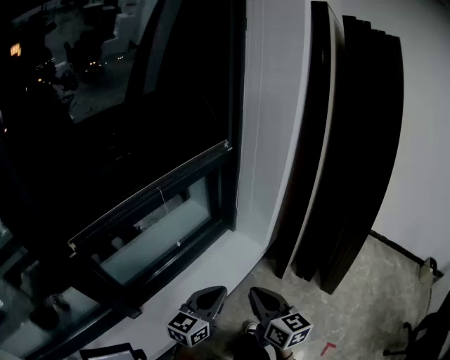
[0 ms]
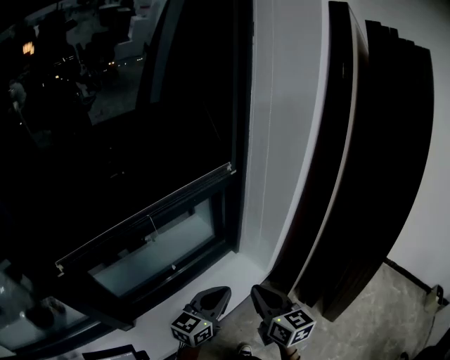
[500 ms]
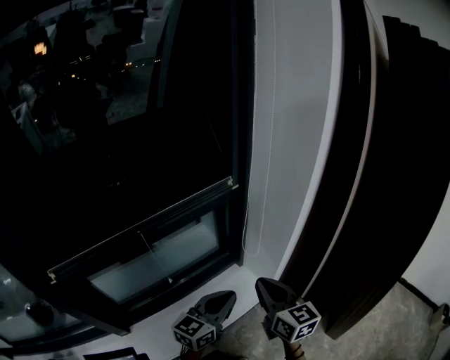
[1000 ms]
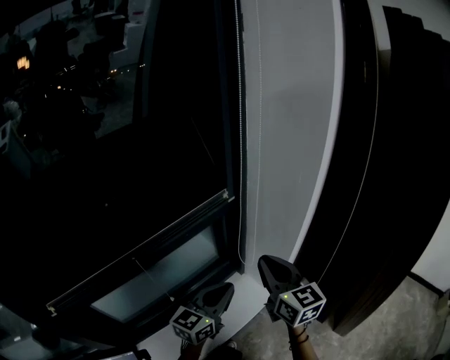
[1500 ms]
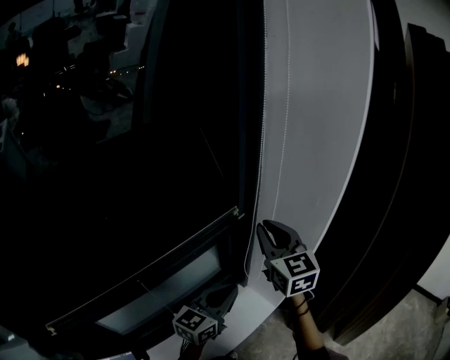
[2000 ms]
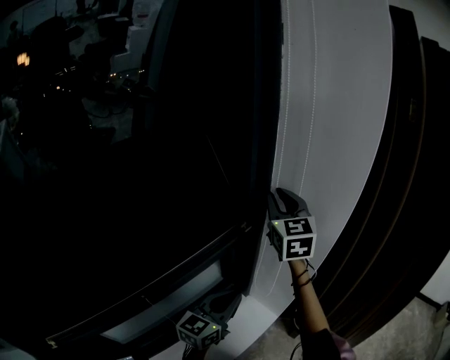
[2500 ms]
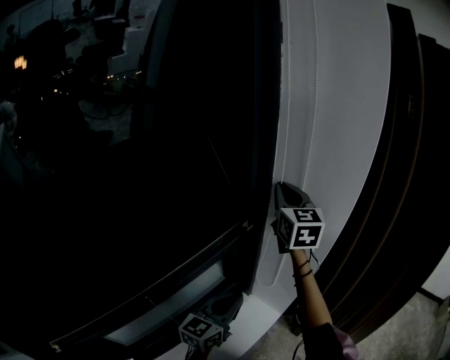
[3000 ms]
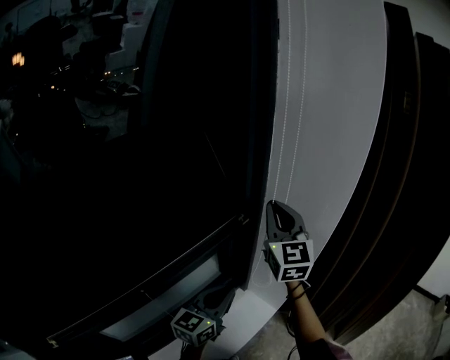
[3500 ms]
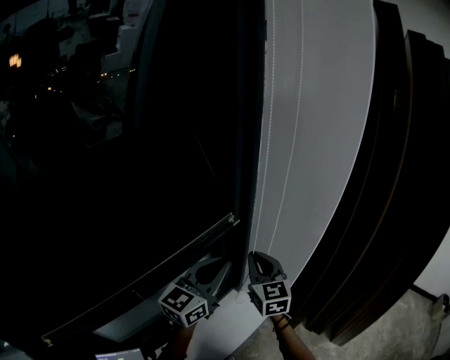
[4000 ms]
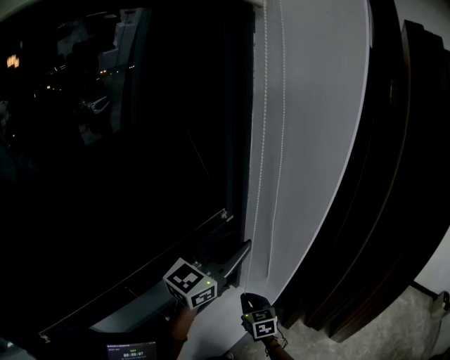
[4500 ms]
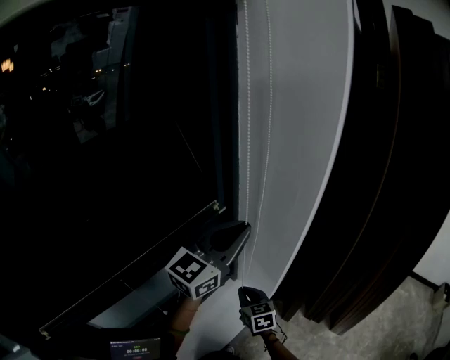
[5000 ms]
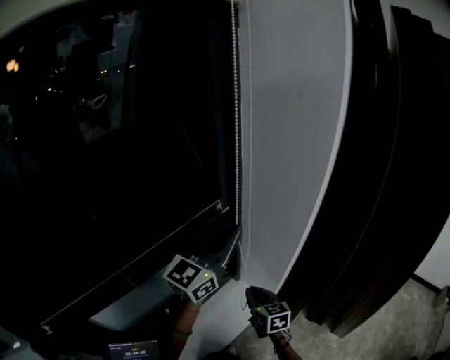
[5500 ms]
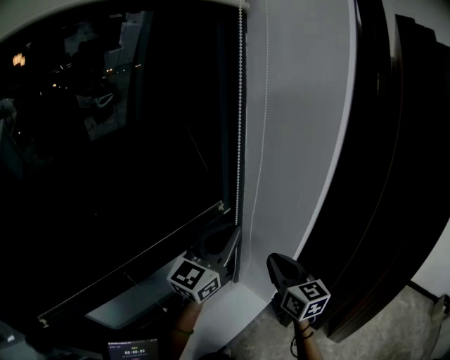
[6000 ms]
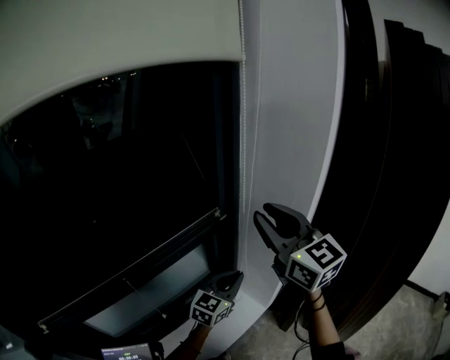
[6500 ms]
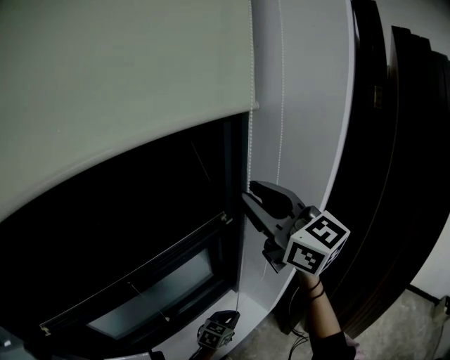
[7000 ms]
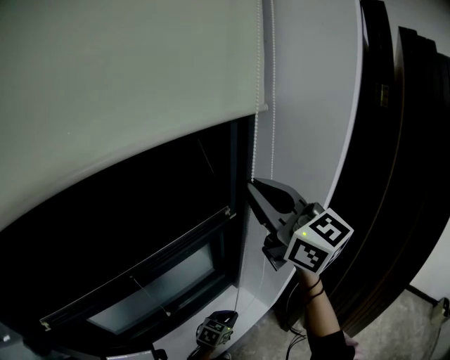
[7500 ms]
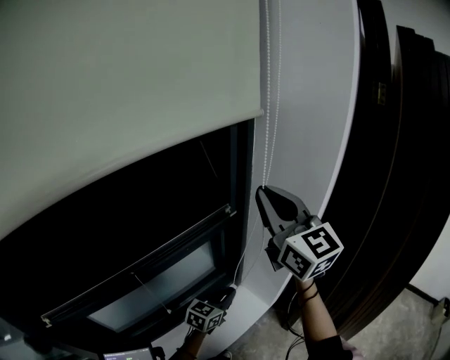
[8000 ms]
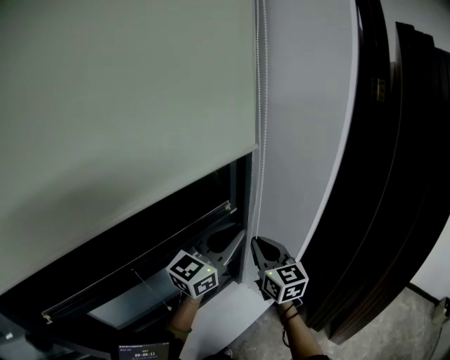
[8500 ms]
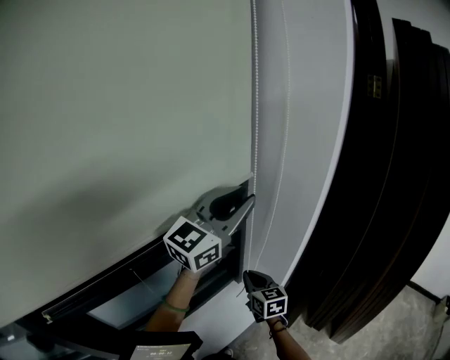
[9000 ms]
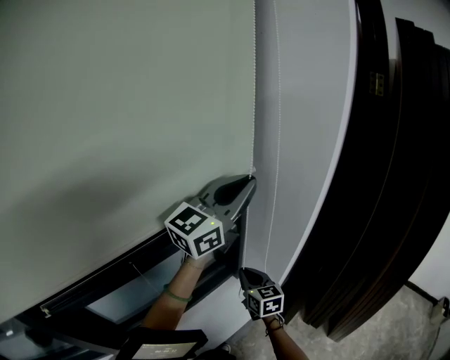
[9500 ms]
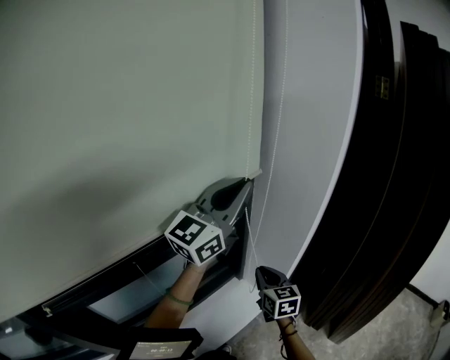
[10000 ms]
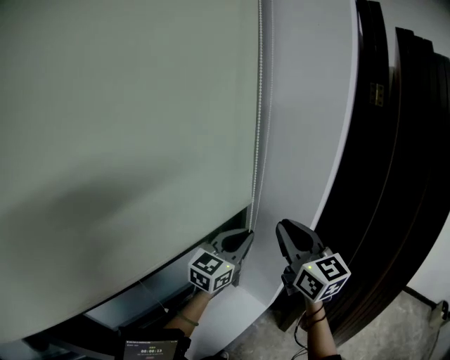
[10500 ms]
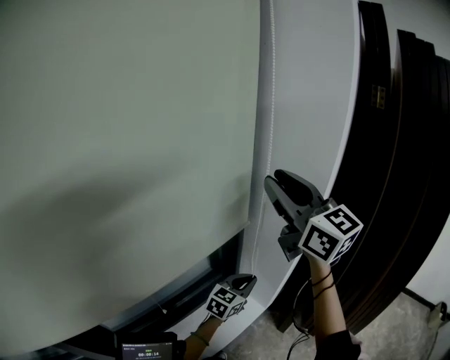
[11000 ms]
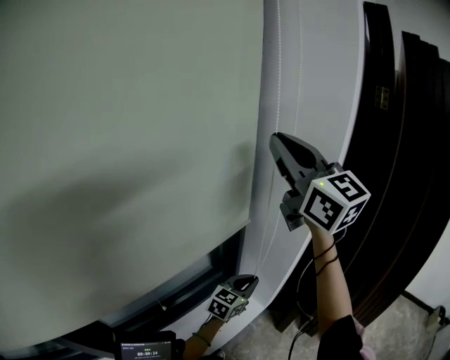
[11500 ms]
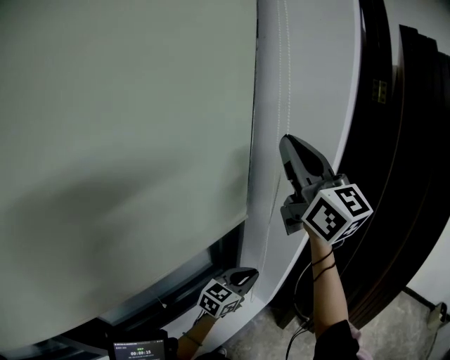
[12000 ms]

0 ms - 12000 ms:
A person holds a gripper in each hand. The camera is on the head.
0 ms - 2000 ms: Both grippers travel together forward, approximately 40 cm. The right gripper turns by about 30 degrees.
2000 ms - 4000 ms: The left gripper travels upward and forward by roughly 10 cm, while the right gripper moves downward, roughly 10 cm.
4000 ms - 6000 ms: The right gripper heads to the right and backward, covering roughly 10 cm, and goes downward and returns, some 20 cm each way, while the left gripper moves upward and to the right, roughly 10 cm, and opens, then closes again.
6000 ms - 8000 ms: The left gripper shifts about 30 cm downward, and angles its fingers downward, by roughly 30 degrees; the right gripper shifts approximately 20 cm upward, rotates roughly 30 degrees, and opens and closes again.
8000 ms - 10000 ms: The right gripper travels downward by approximately 35 cm, and points its fingers about 30 degrees further downward. Meanwhile the left gripper travels upward by approximately 40 cm, and tips its fingers upward by approximately 40 degrees.
10000 ms - 12000 ms: The right gripper goes roughly 40 cm upward, points its fingers about 40 degrees further upward, and opens, then closes again. The left gripper heads downward, covering approximately 30 cm, and angles its fingers downward, by roughly 30 degrees.

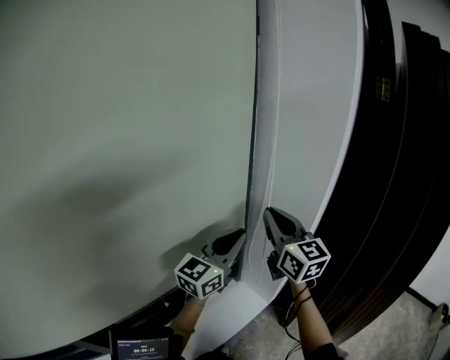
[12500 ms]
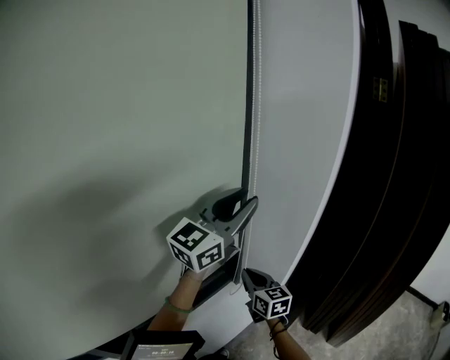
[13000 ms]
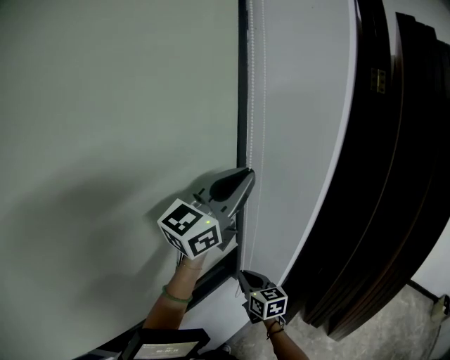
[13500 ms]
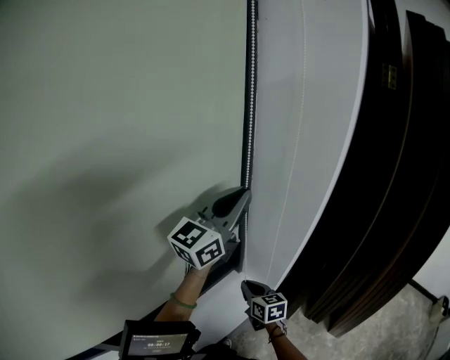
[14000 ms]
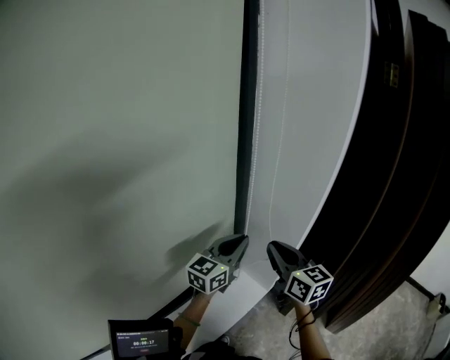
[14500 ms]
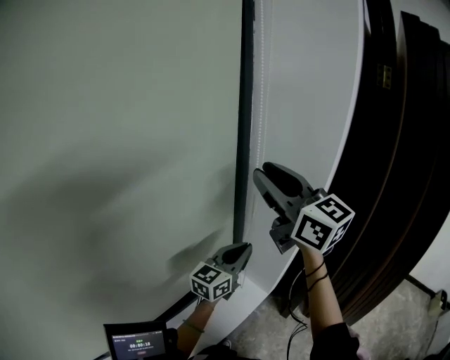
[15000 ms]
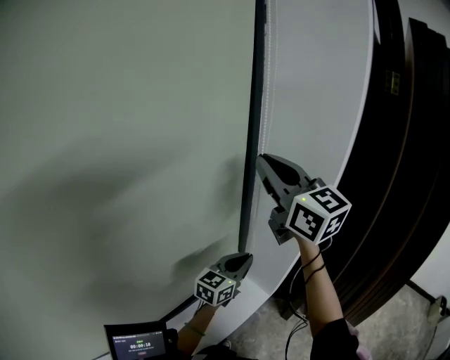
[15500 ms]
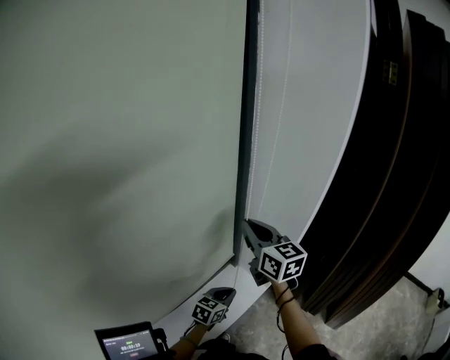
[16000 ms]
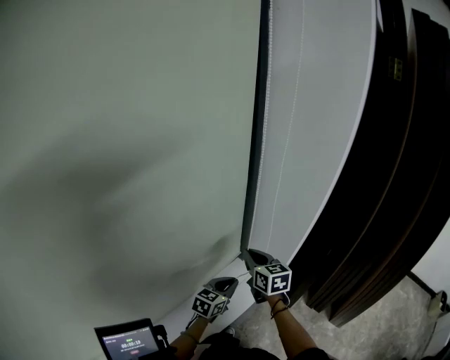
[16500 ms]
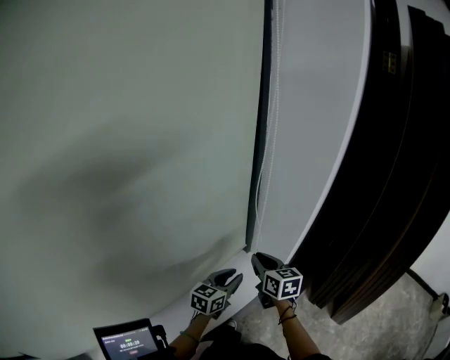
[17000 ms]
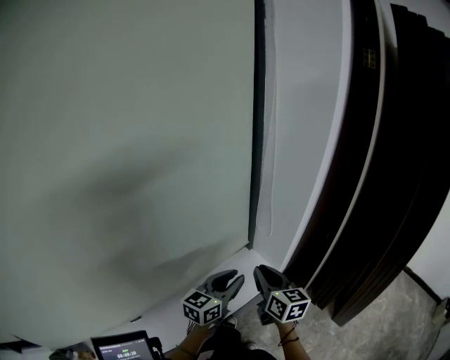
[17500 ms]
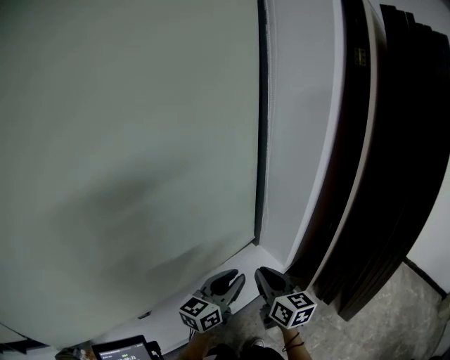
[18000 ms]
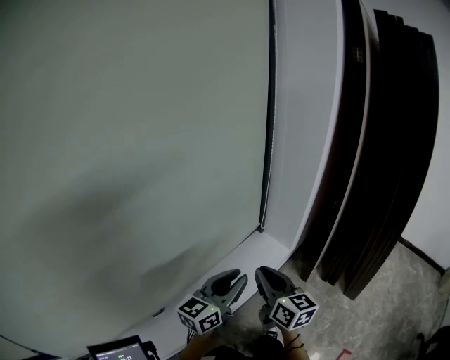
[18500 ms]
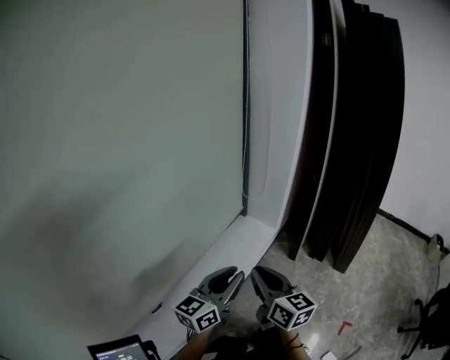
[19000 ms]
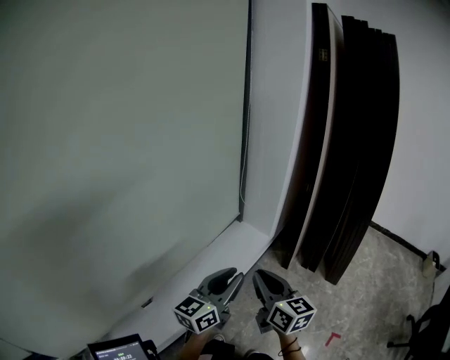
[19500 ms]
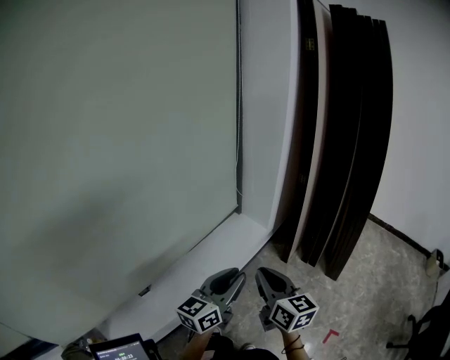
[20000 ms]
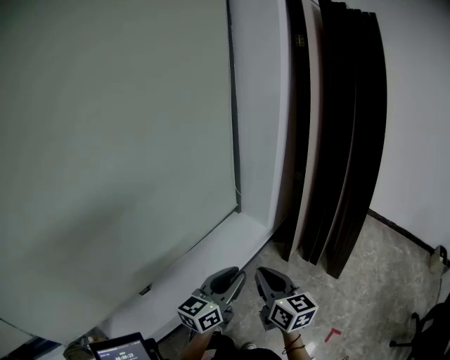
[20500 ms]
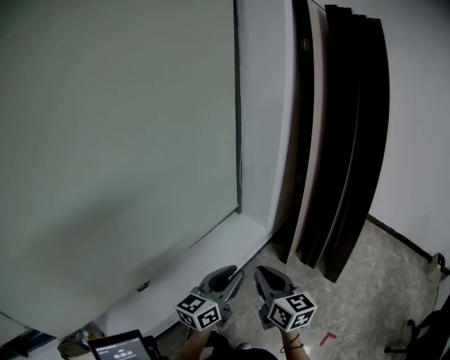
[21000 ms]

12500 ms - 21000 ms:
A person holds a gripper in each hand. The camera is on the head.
12500 ms - 14500 ms: The two grippers go approximately 10 cm downward. The left gripper opens and closes again.
14500 ms - 16500 ms: The right gripper goes about 15 cm downward and to the left, and opens and closes again. Meanwhile the left gripper heads downward and backward, covering approximately 25 cm, and changes its angle by some 30 degrees.
16500 ms - 19000 ms: The left gripper goes some 40 cm backward and upward, changes its angle by approximately 30 degrees, and opens its fingers, while the right gripper travels backward by some 40 cm.
19000 ms - 21000 ms: The grippers both shift to the right and backward by about 15 cm.

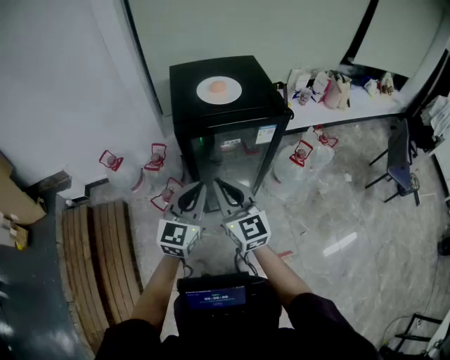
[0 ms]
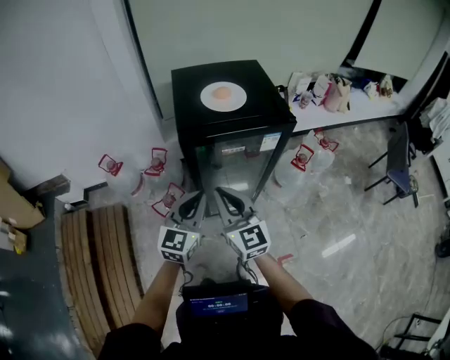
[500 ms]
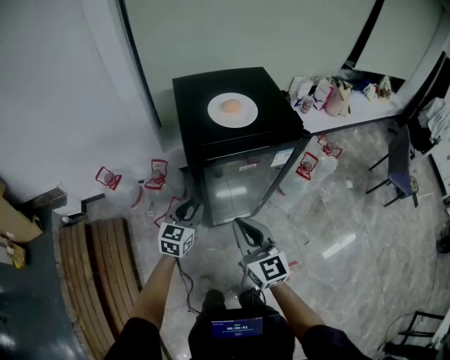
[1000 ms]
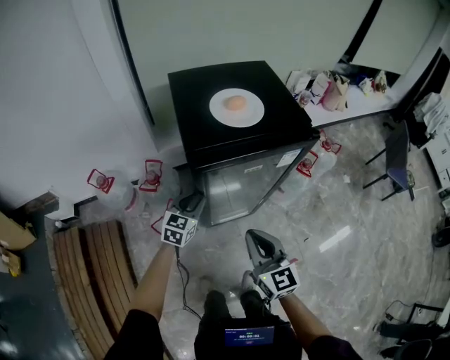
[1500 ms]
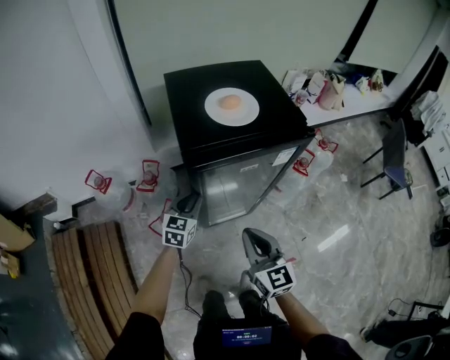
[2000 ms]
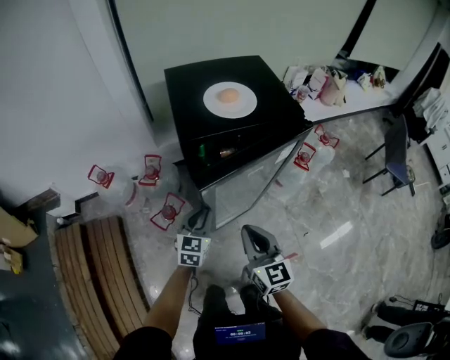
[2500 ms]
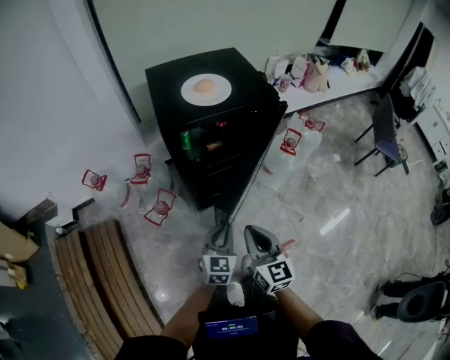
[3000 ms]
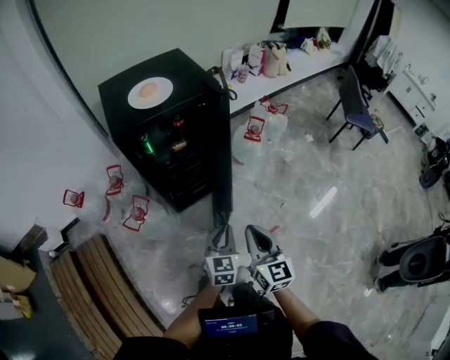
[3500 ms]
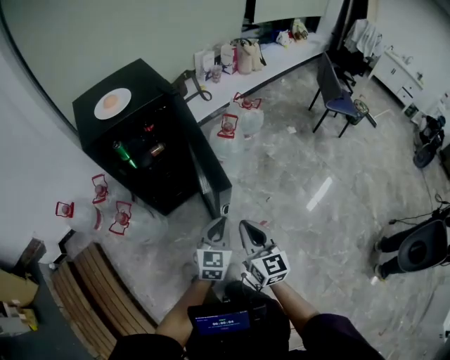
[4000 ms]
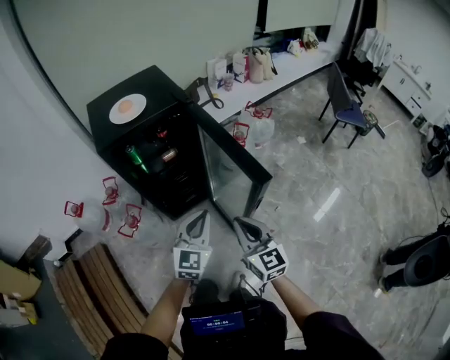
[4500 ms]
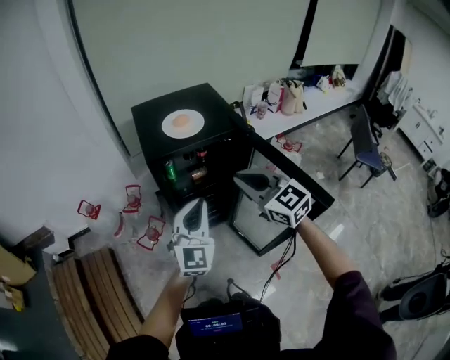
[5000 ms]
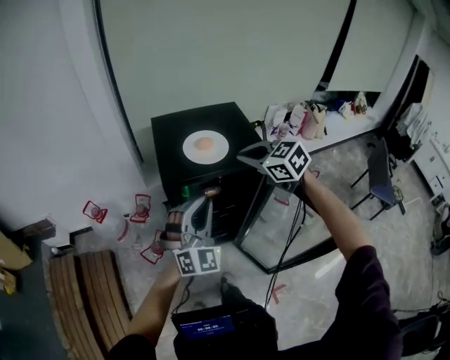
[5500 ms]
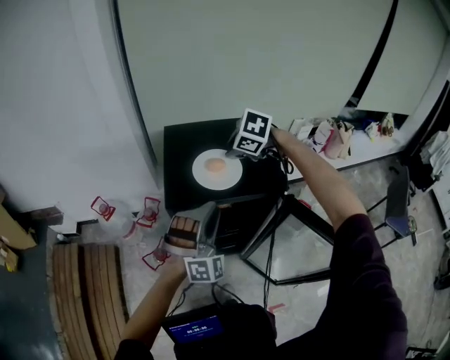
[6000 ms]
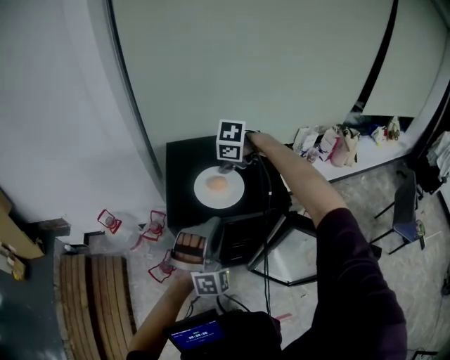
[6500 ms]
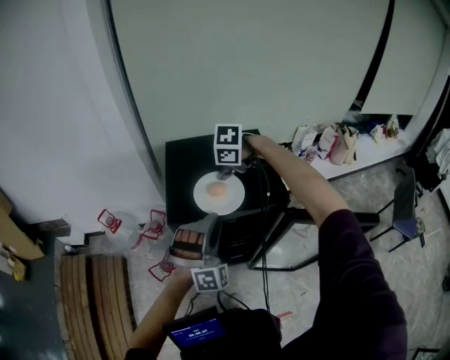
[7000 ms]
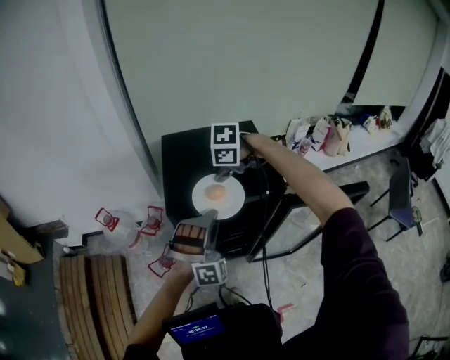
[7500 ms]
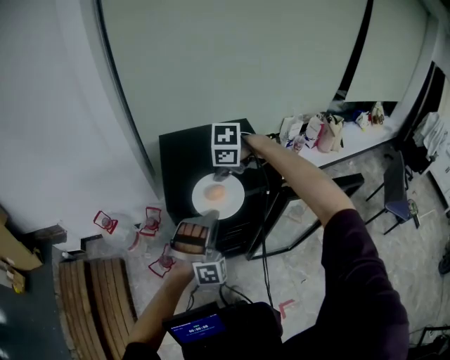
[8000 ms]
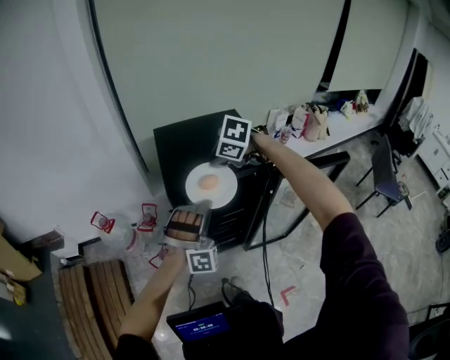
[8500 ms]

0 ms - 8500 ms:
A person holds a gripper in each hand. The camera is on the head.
0 ms - 2000 ms: The left gripper is displaced downward and forward by some 25 cm, and rotates roughly 20 degrees. Meanwhile the right gripper moves downward, about 10 cm.
2000 ms - 4000 ms: Both grippers travel together to the right and backward, about 40 cm. The right gripper rotates roughly 20 degrees.
4000 ms - 6500 ms: Both grippers are carried about 60 cm. The right gripper tilts its fingers about 60 degrees downward. The left gripper rolls clockwise, seen from behind, by approximately 70 degrees, and opens its fingers.
6500 ms - 8500 ms: The left gripper ends up about 10 cm from where it was. The right gripper ends up approximately 15 cm from where it was.
